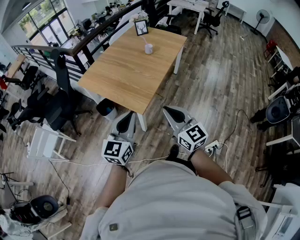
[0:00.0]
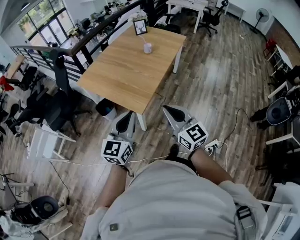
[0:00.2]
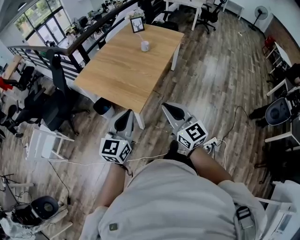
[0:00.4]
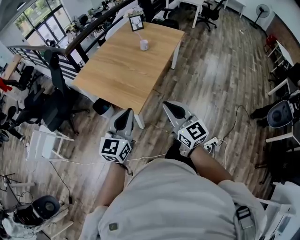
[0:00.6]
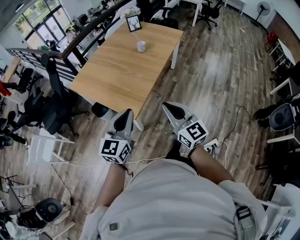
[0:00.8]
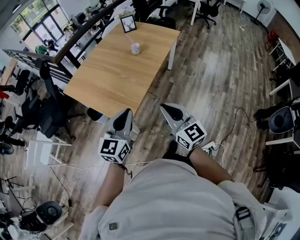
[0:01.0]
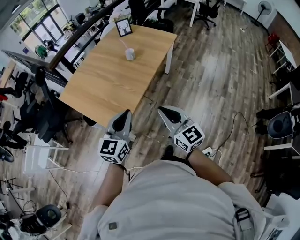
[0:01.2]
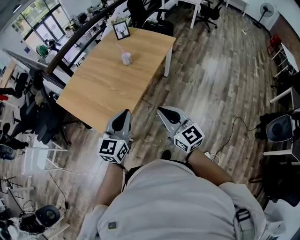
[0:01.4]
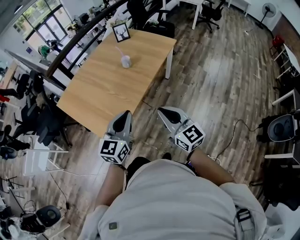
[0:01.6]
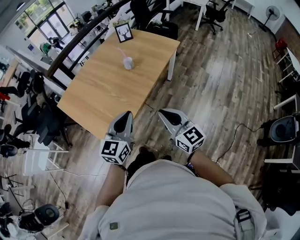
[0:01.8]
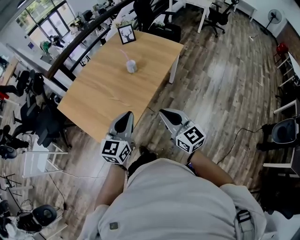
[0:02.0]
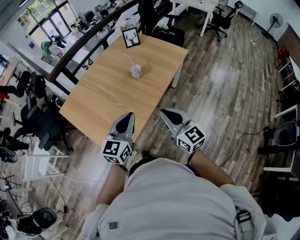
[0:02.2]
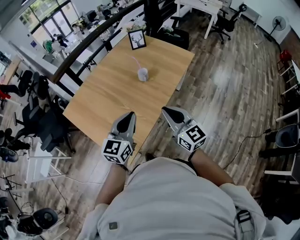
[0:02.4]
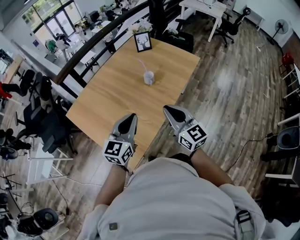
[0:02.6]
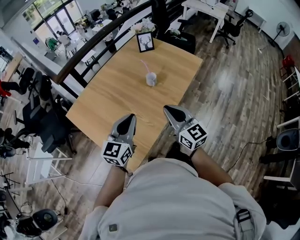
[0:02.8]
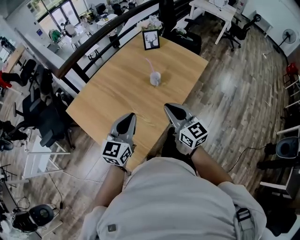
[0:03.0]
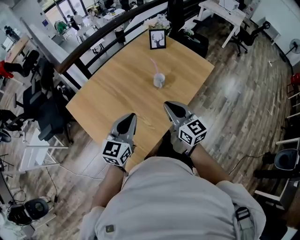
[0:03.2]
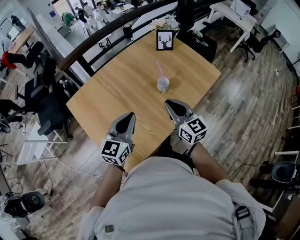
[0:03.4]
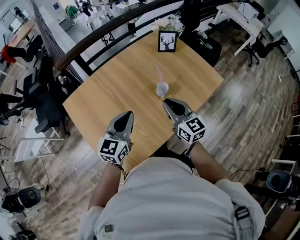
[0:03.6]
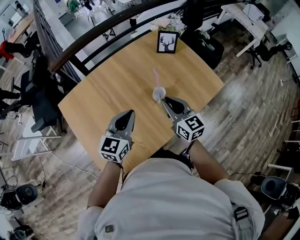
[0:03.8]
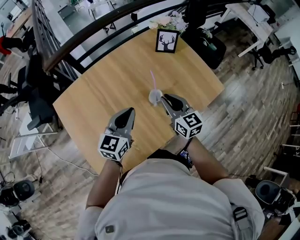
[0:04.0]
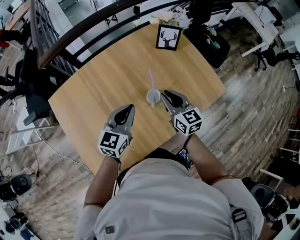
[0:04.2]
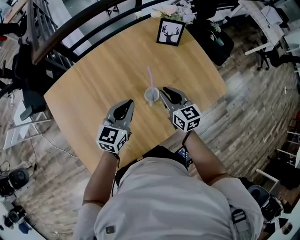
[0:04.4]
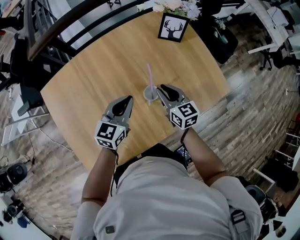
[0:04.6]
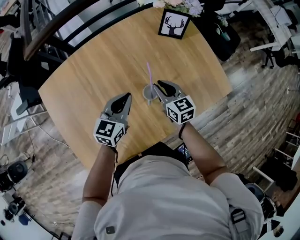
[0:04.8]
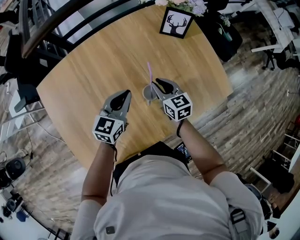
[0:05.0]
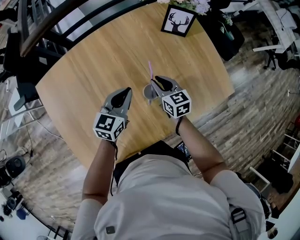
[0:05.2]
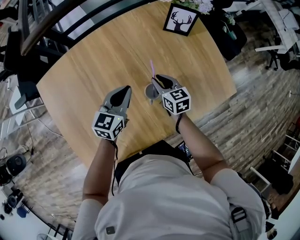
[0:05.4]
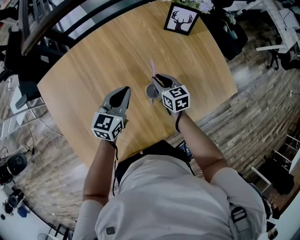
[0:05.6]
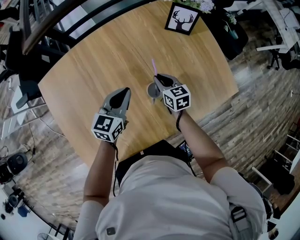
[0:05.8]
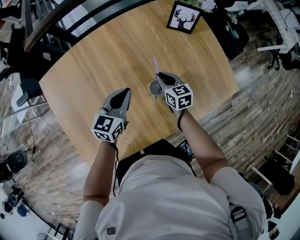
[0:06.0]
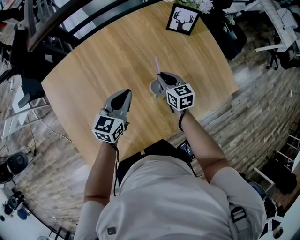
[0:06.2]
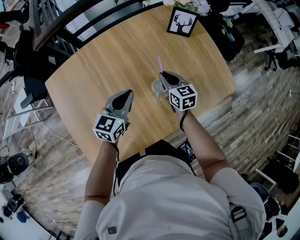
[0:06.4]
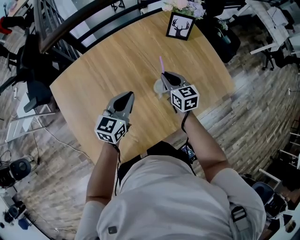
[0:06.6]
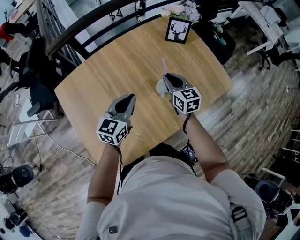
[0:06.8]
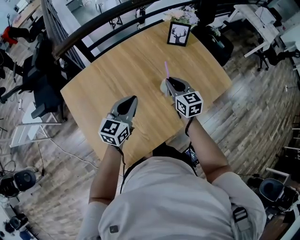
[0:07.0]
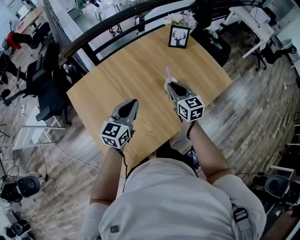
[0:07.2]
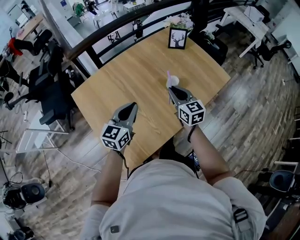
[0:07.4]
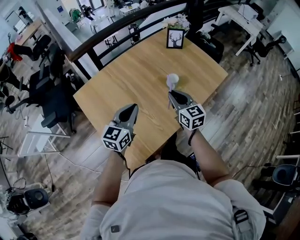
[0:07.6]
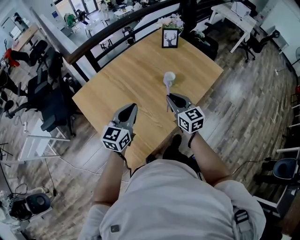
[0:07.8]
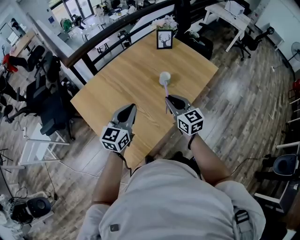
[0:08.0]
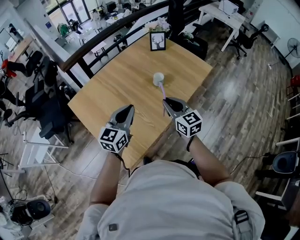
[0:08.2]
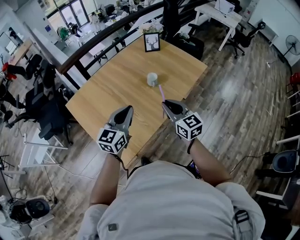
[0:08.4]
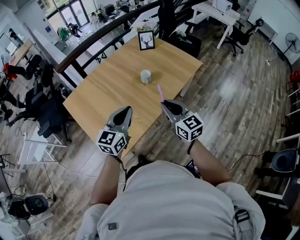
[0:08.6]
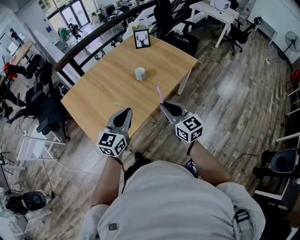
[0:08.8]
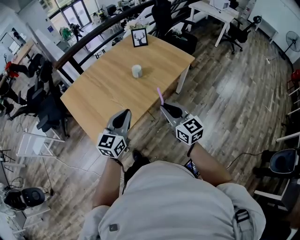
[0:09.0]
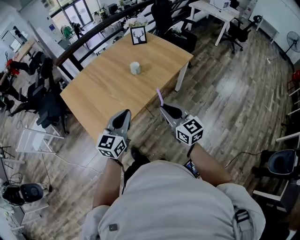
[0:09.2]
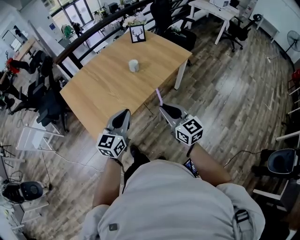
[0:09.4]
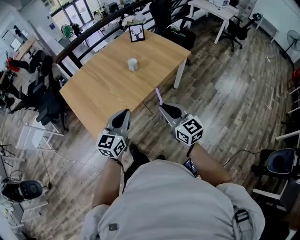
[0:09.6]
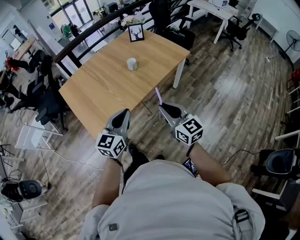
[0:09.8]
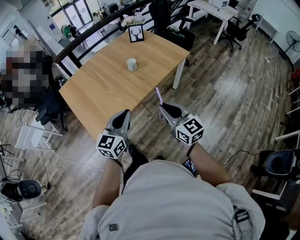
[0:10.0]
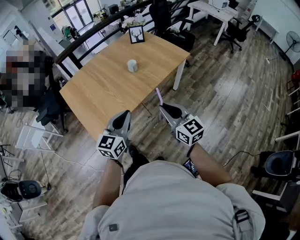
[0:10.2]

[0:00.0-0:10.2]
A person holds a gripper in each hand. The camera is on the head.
0:00.0 to 0:01.4: The two grippers go approximately 30 cm forward and to the right.
0:01.4 to 0:03.0: The left gripper is displaced forward and to the left by about 25 cm; the right gripper is displaced forward by about 30 cm.
0:03.0 to 0:04.4: Both grippers travel together forward and downward, approximately 35 cm. The right gripper turns by about 20 degrees.
0:04.4 to 0:05.8: The right gripper moves downward and forward, roughly 15 cm. Meanwhile the left gripper goes approximately 10 cm downward and forward.
0:05.8 to 0:07.2: The right gripper shifts some 25 cm upward and backward, and rotates approximately 20 degrees; the left gripper moves backward, upward and to the left, some 25 cm.
0:07.2 to 0:08.8: Both grippers move backward and to the right, roughly 30 cm.
0:08.8 to 0:10.2: Both grippers travel together backward and to the right, about 15 cm.

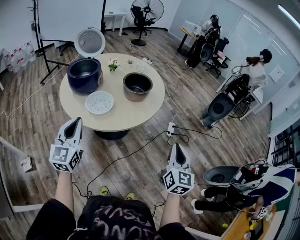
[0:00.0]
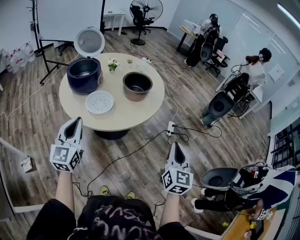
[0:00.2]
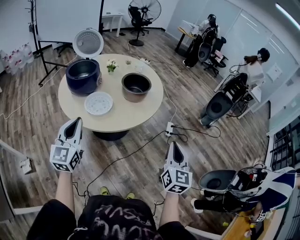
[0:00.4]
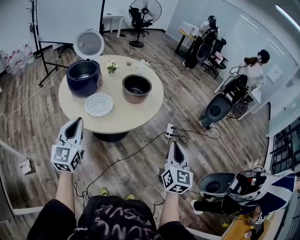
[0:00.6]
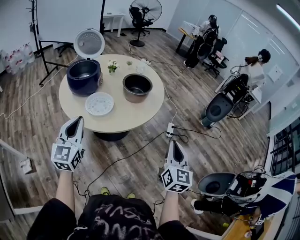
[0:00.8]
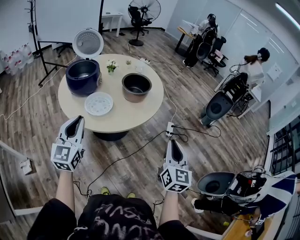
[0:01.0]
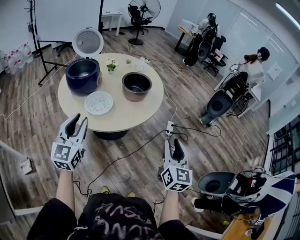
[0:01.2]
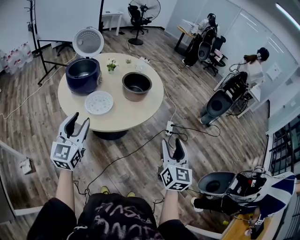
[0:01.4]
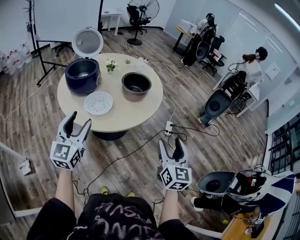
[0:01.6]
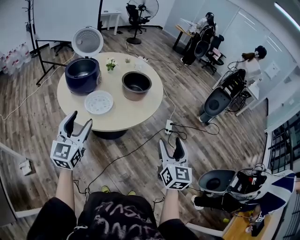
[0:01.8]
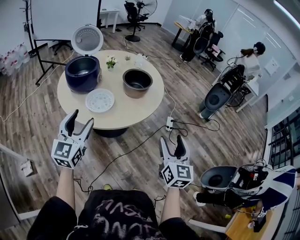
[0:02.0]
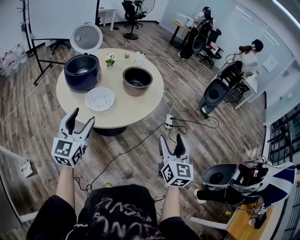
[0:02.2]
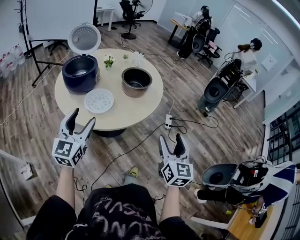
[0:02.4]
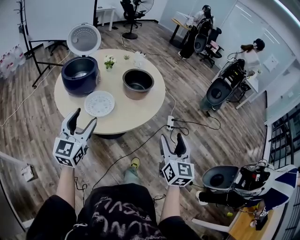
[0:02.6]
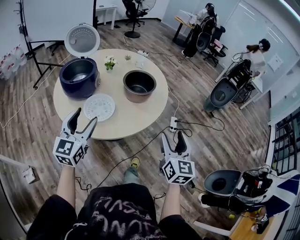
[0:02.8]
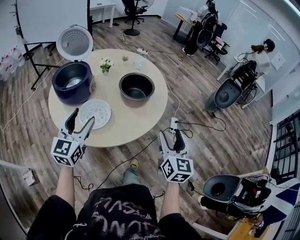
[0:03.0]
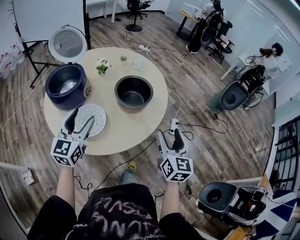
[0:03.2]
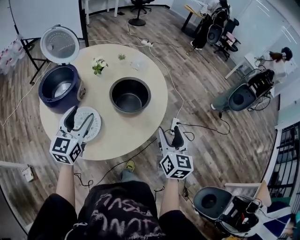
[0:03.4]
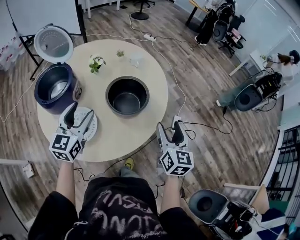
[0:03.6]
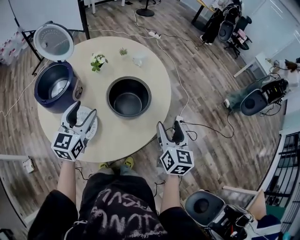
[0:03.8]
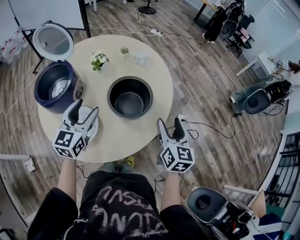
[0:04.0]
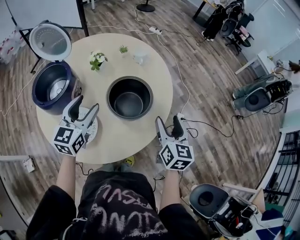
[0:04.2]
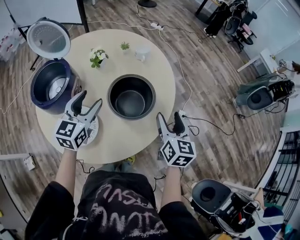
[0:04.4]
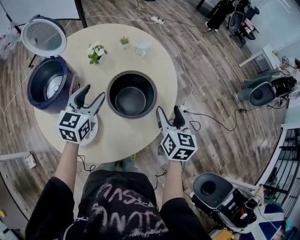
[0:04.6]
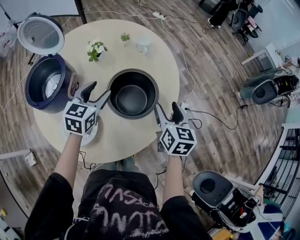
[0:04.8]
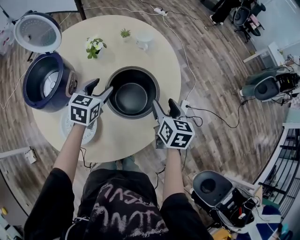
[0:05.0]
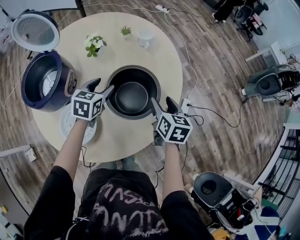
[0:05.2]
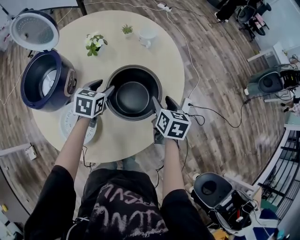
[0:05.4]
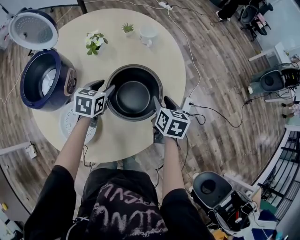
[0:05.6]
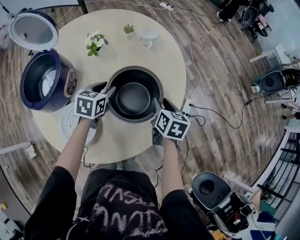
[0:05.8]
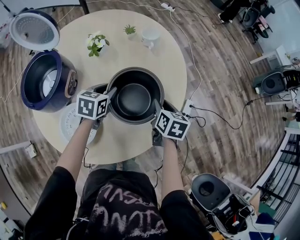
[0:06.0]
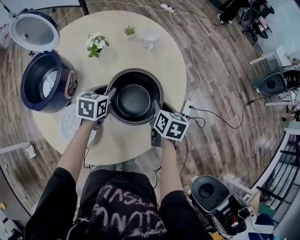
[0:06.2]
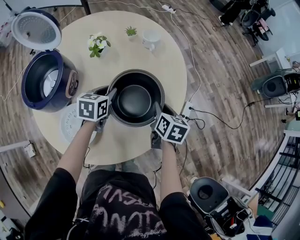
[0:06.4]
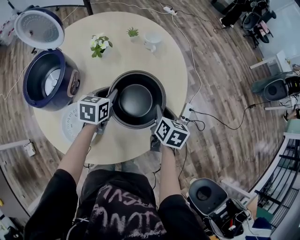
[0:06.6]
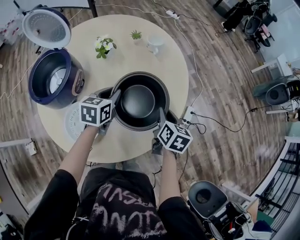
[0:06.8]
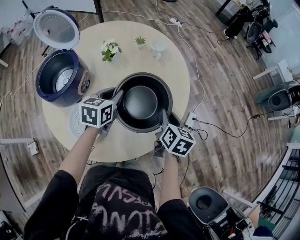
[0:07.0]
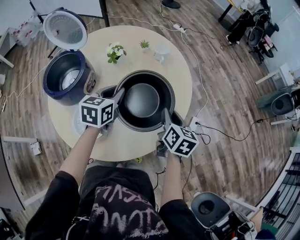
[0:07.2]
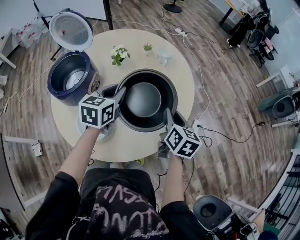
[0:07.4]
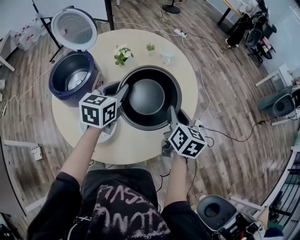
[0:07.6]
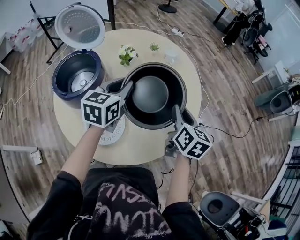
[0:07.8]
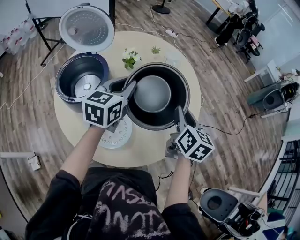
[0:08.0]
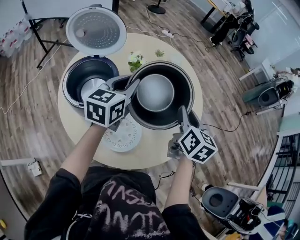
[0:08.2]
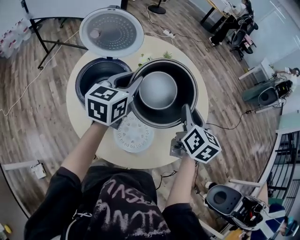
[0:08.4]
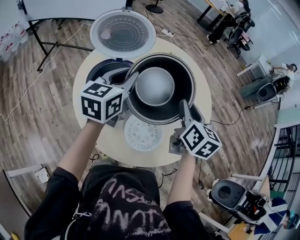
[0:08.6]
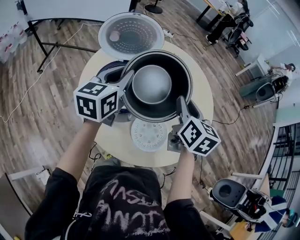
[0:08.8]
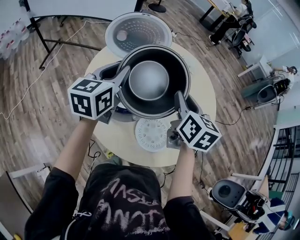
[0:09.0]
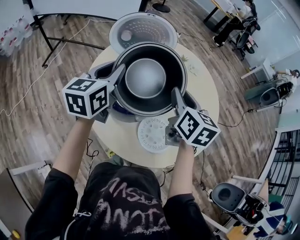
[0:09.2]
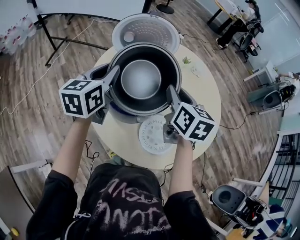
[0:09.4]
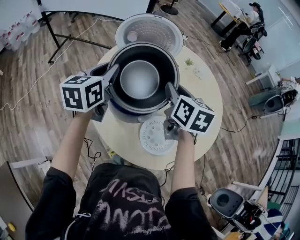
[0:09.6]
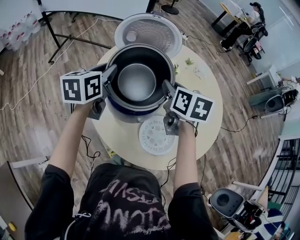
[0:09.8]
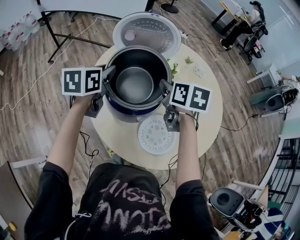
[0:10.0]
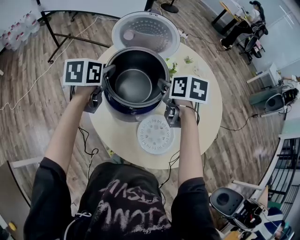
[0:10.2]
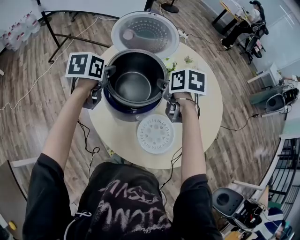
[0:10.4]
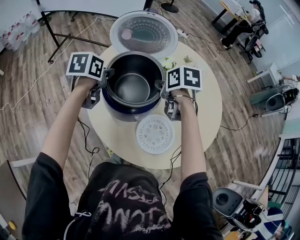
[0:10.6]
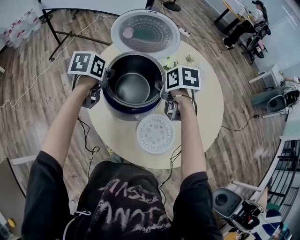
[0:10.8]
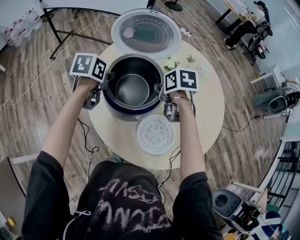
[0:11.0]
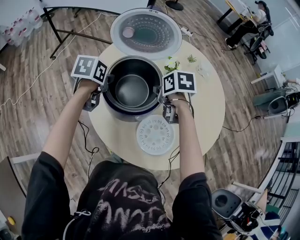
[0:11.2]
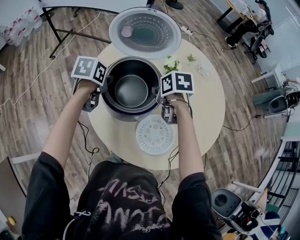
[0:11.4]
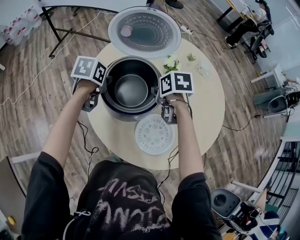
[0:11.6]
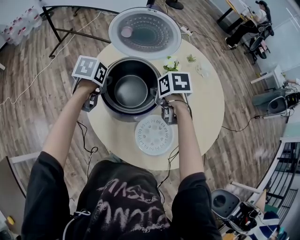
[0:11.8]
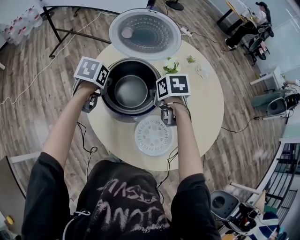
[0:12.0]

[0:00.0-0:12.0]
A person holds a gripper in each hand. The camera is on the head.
0:00.0 to 0:01.6: The right gripper opens; the left gripper opens up.
0:01.6 to 0:03.0: Both grippers move forward, approximately 15 cm.
0:03.0 to 0:04.4: Both grippers travel together forward, roughly 25 cm.
0:04.4 to 0:06.0: Both grippers travel together downward and forward, roughly 15 cm. The left gripper rotates some 30 degrees, and closes its fingers. Meanwhile the right gripper rotates roughly 30 degrees, and closes.
0:06.0 to 0:07.6: The right gripper moves upward and backward, some 15 cm, while the left gripper goes roughly 15 cm upward, and swivels approximately 20 degrees.
0:07.6 to 0:09.0: The right gripper heads to the left and upward, covering some 35 cm, while the left gripper shifts roughly 30 cm to the left.
0:09.0 to 0:10.4: The right gripper is displaced downward, to the left and forward by about 15 cm, and angles its fingers downward, by approximately 30 degrees; the left gripper goes some 10 cm downward and to the left, and swivels about 30 degrees.
0:10.4 to 0:12.0: Both grippers move downward, some 5 cm.

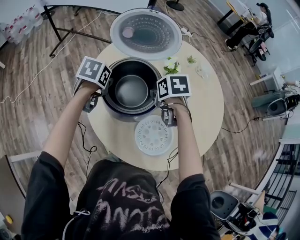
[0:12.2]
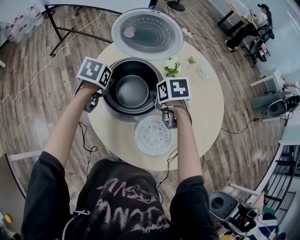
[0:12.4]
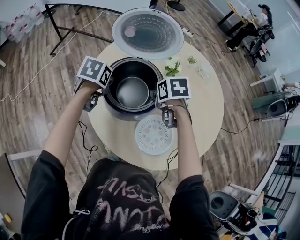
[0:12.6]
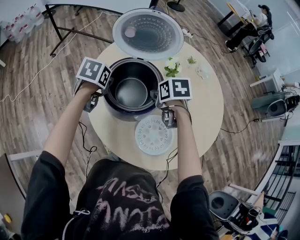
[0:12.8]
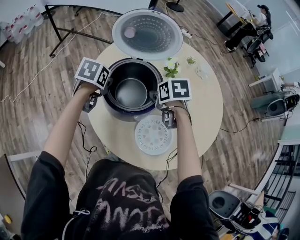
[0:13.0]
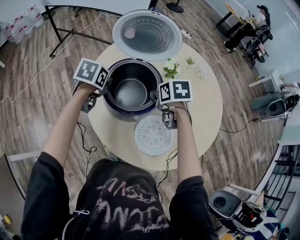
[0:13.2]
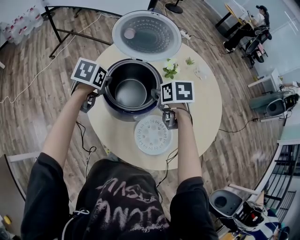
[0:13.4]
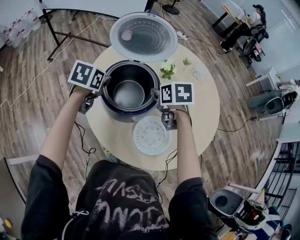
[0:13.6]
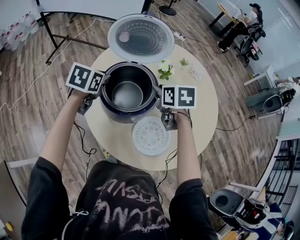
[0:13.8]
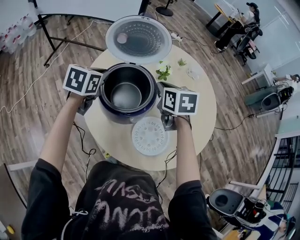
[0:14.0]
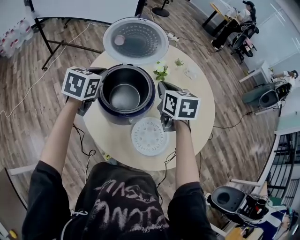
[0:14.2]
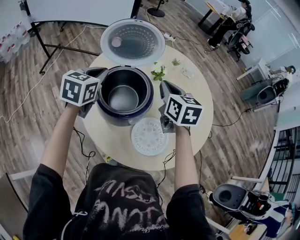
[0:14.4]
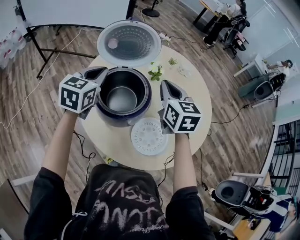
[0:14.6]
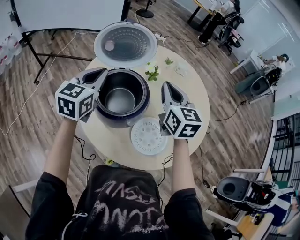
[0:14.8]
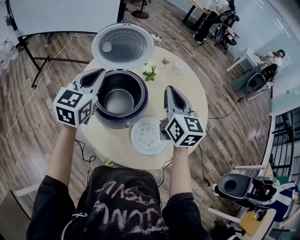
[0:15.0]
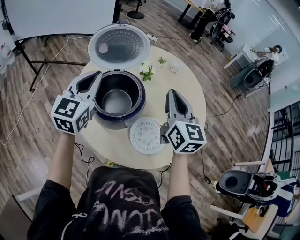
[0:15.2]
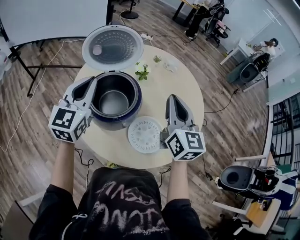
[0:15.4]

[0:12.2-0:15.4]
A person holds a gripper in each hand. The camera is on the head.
0:12.2 to 0:13.8: Both grippers travel together upward, roughly 5 cm.
0:13.8 to 0:15.4: The left gripper travels upward by approximately 15 cm, and tilts its fingers some 40 degrees upward, while the right gripper travels upward, backward and to the right by roughly 20 cm, and points its fingers about 50 degrees further upward.
